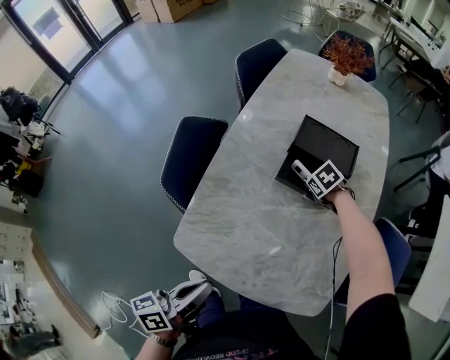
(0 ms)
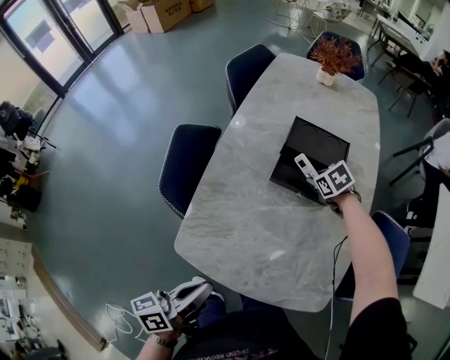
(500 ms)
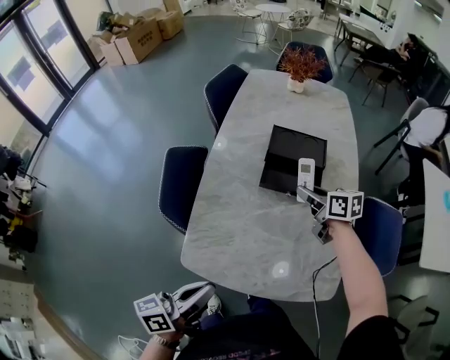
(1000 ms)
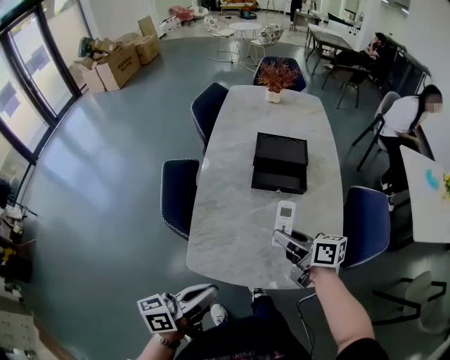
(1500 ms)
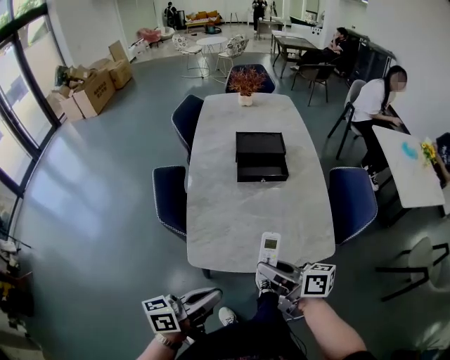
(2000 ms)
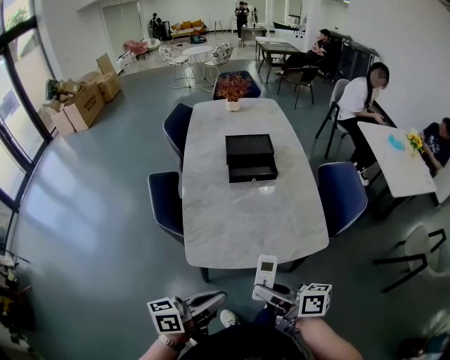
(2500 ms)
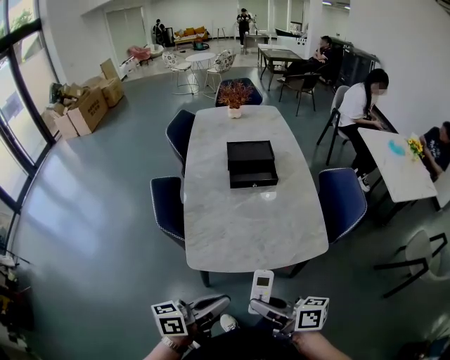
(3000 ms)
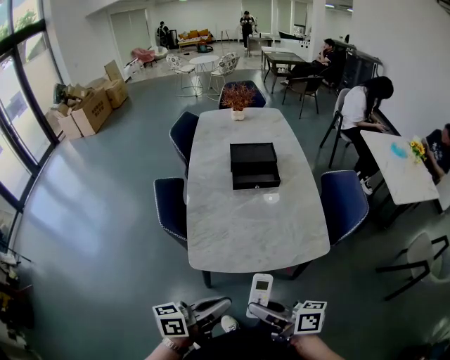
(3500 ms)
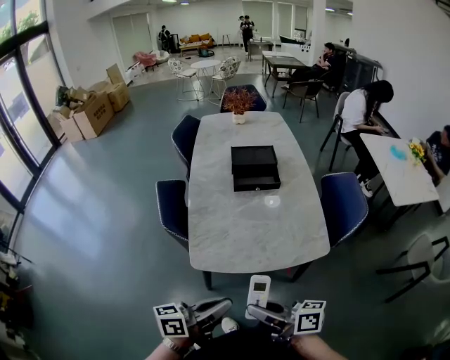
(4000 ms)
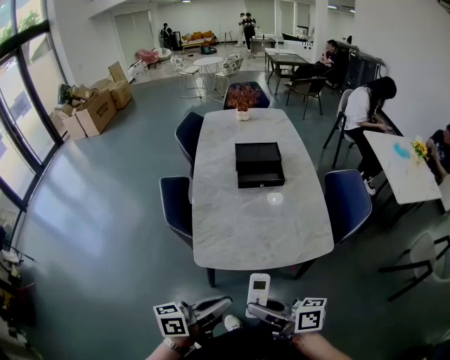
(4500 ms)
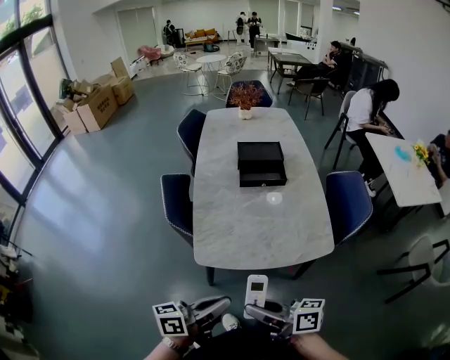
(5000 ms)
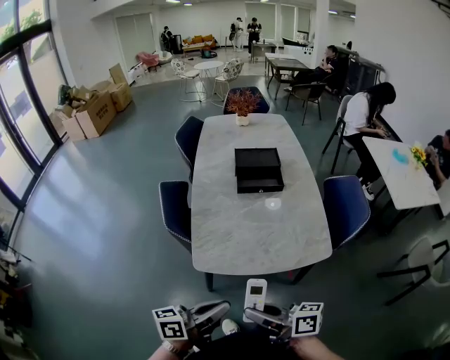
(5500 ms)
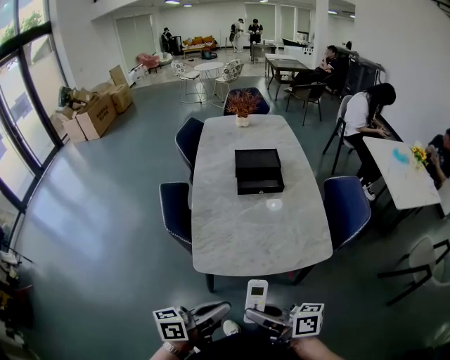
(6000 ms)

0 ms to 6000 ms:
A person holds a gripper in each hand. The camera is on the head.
0 ms to 2000 ms: The right gripper shifts by roughly 50 cm, and tips its fingers upward by approximately 70 degrees. The left gripper shifts by some 10 cm, and changes its angle by some 40 degrees.
2000 ms to 4000 ms: The right gripper travels backward by roughly 15 cm. The left gripper shifts some 5 cm backward.
4000 ms to 6000 ms: The grippers move only a little.

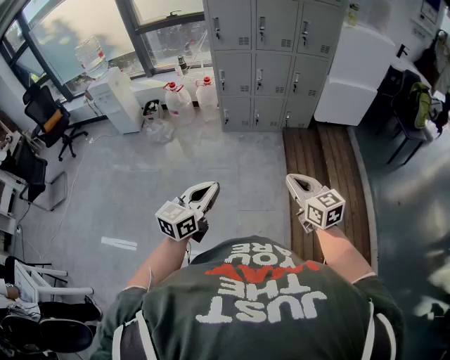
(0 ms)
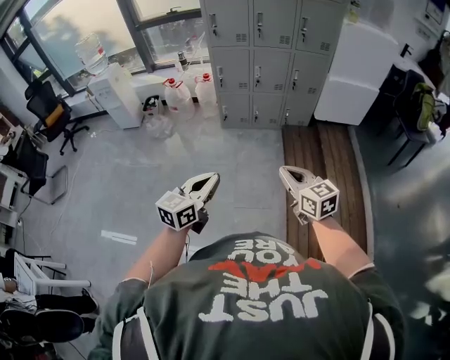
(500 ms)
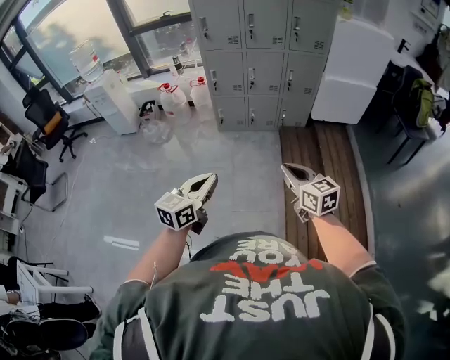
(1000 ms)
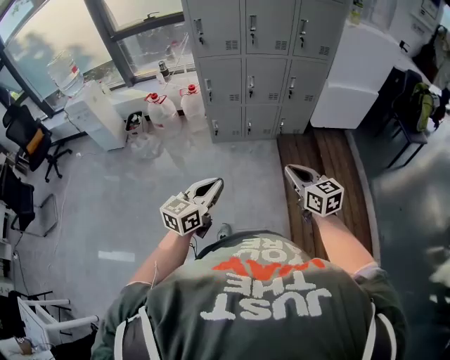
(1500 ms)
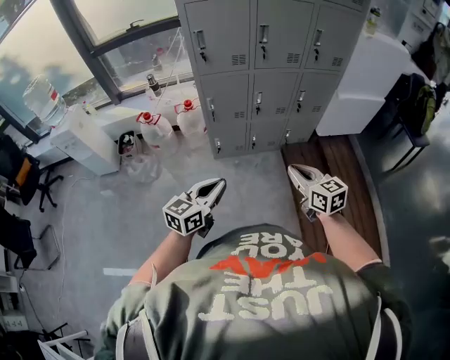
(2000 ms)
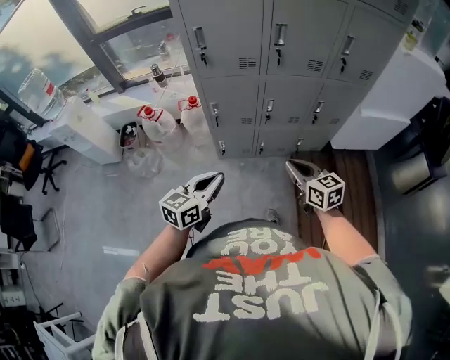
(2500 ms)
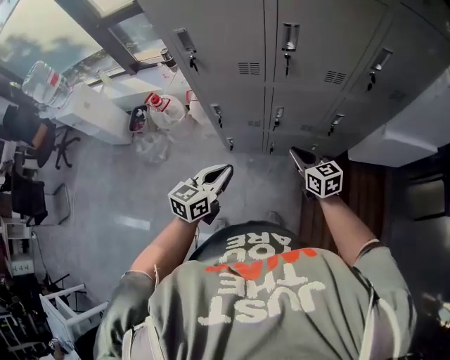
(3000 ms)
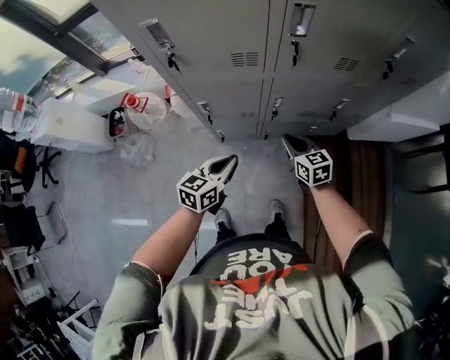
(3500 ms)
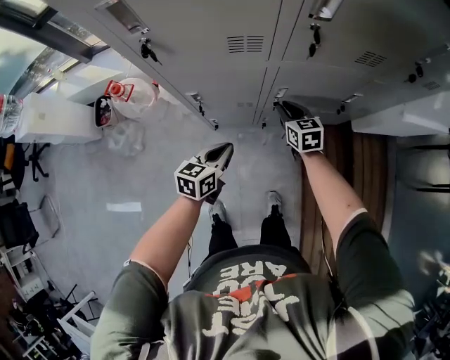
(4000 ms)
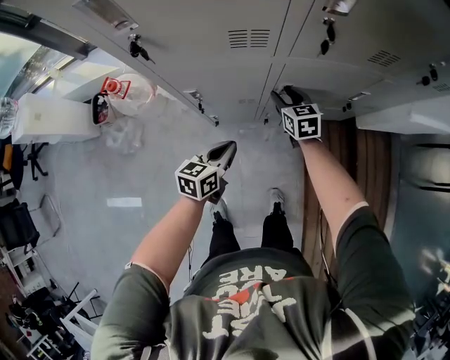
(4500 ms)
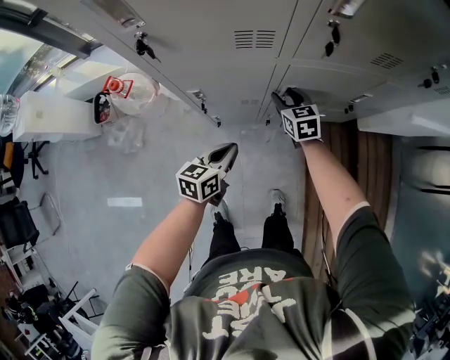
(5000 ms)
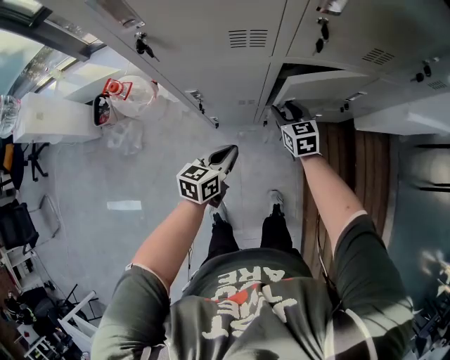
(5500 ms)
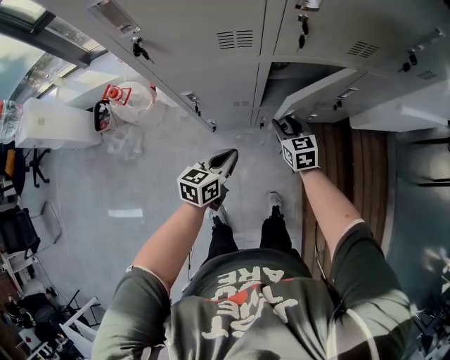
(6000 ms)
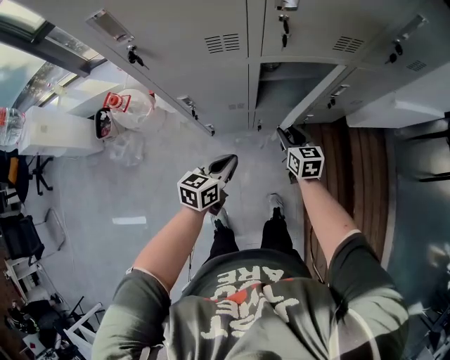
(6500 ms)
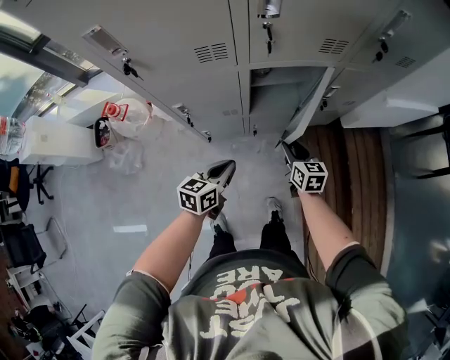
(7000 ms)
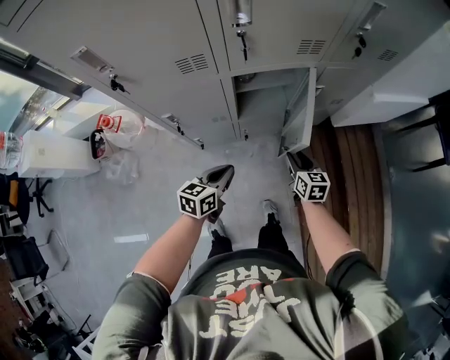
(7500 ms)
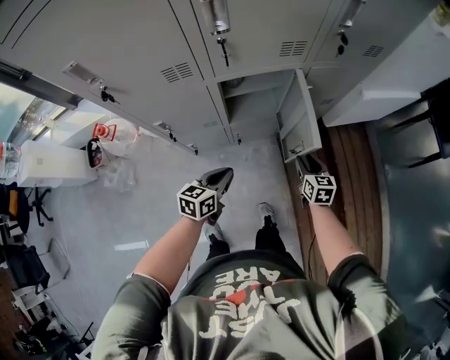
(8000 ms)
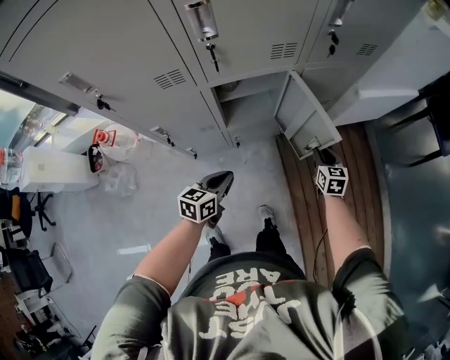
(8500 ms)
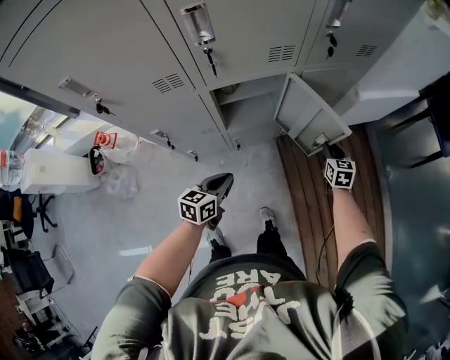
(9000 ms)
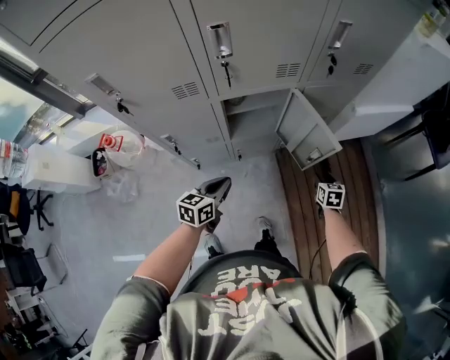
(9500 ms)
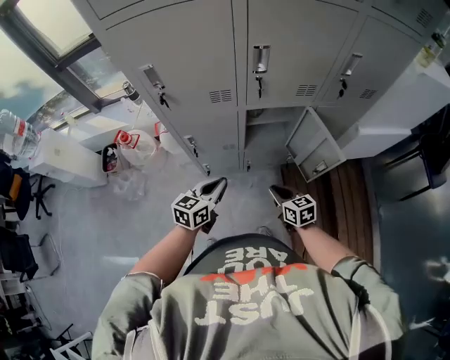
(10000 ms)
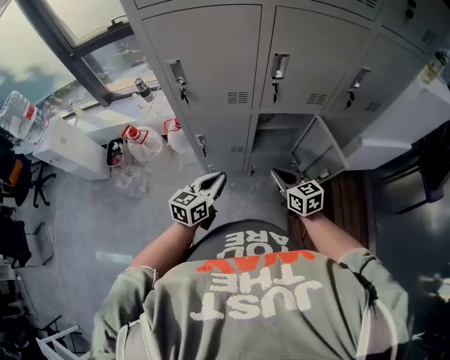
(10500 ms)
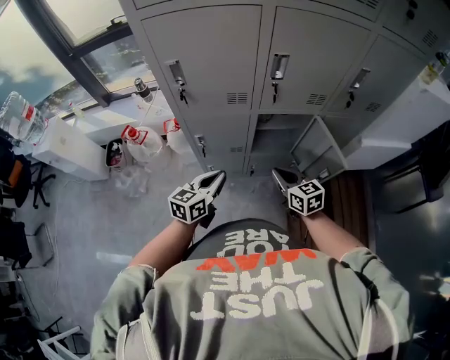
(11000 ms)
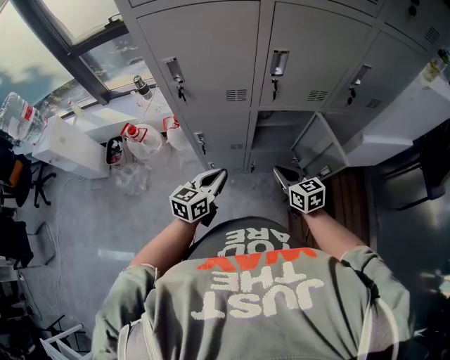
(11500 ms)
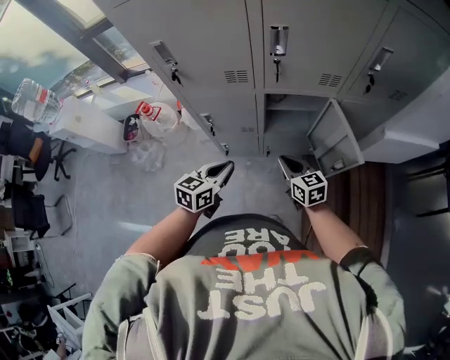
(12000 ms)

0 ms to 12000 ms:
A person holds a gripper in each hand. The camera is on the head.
0 ms to 2000 ms: The two grippers travel together, forward, approximately 40 cm.
2000 ms to 4000 ms: Both grippers are carried forward, approximately 50 cm. Both grippers move downward, approximately 25 cm. The left gripper turns by roughly 20 degrees.
4000 ms to 6000 ms: The right gripper goes roughly 5 cm backward, and opens its fingers.
6000 ms to 8000 ms: The left gripper shifts some 10 cm to the right, while the right gripper heads to the right, covering approximately 25 cm, and swivels approximately 30 degrees.
8000 ms to 10000 ms: The left gripper heads upward, covering about 10 cm; the right gripper changes place by some 20 cm, swivels roughly 30 degrees, and closes.
10000 ms to 12000 ms: The right gripper moves forward, roughly 5 cm, and reaches roughly 10 cm upward, then returns.

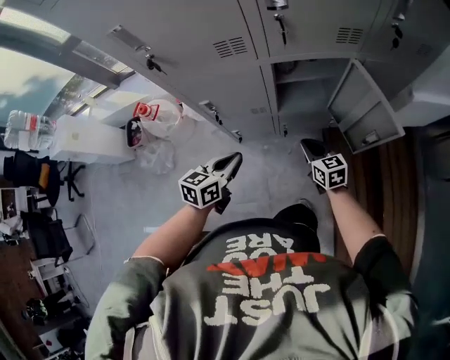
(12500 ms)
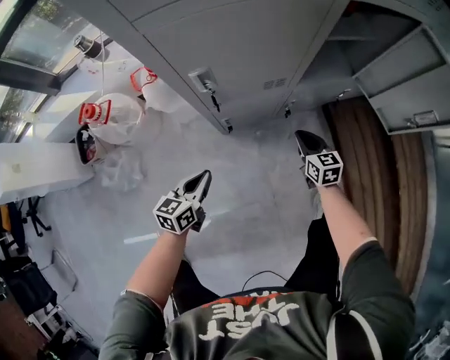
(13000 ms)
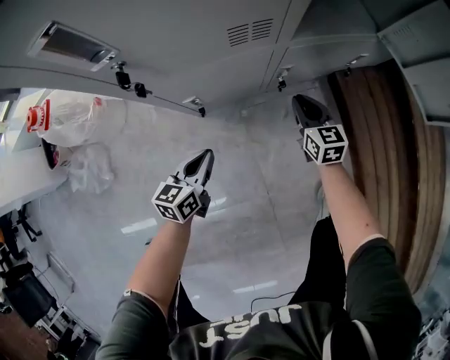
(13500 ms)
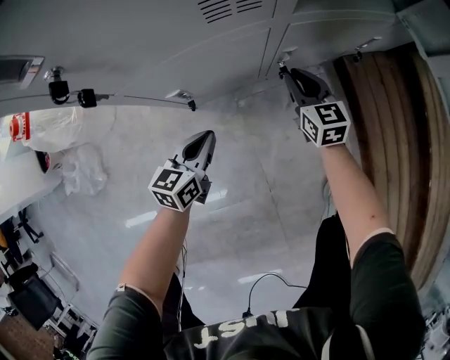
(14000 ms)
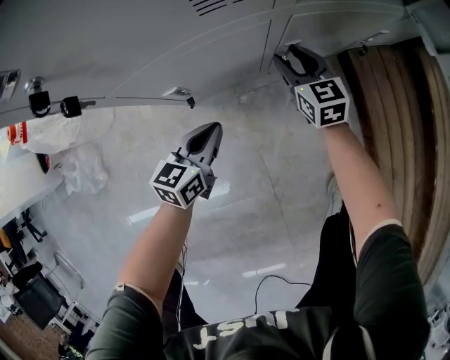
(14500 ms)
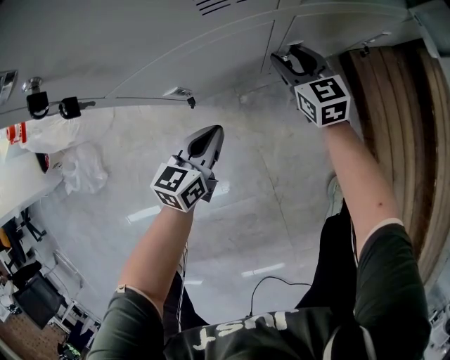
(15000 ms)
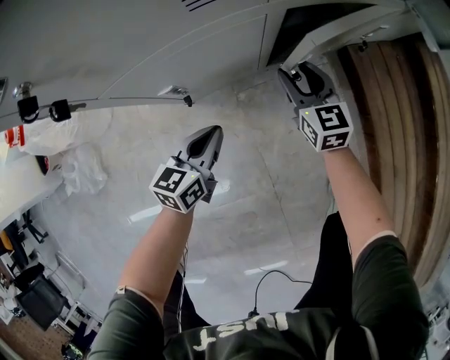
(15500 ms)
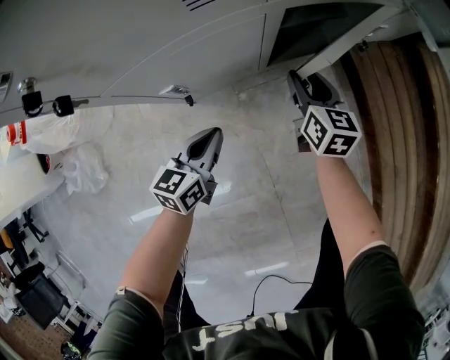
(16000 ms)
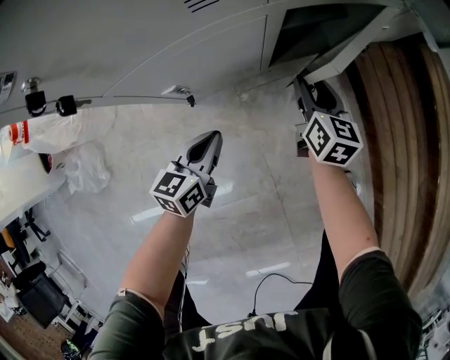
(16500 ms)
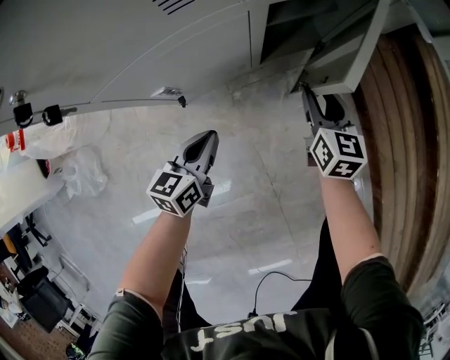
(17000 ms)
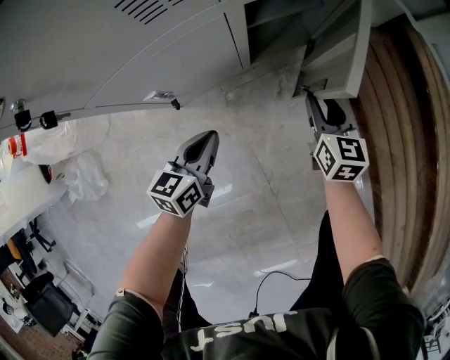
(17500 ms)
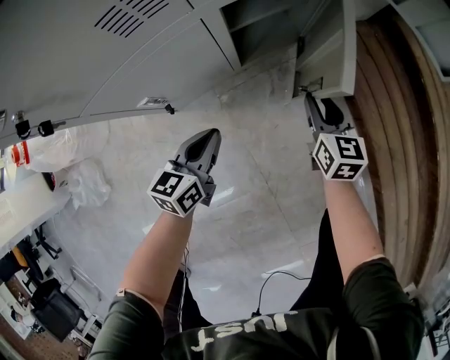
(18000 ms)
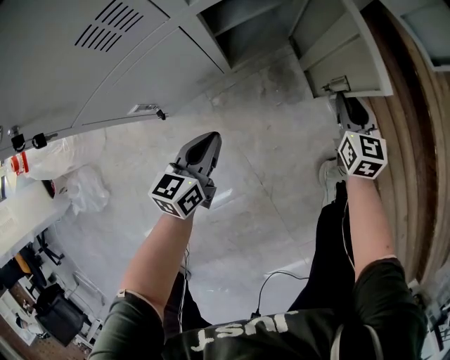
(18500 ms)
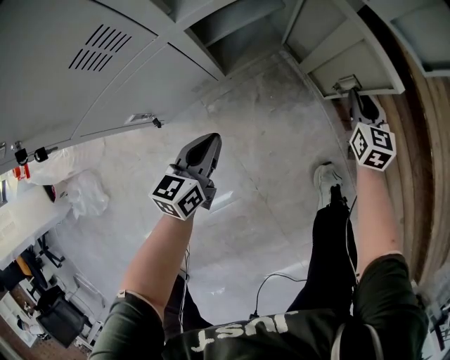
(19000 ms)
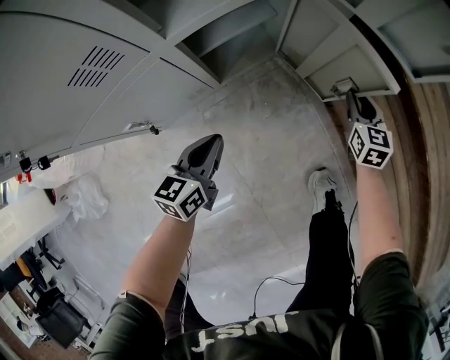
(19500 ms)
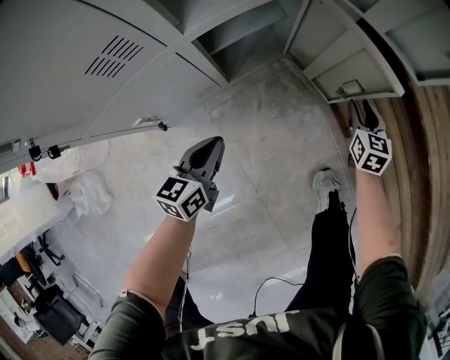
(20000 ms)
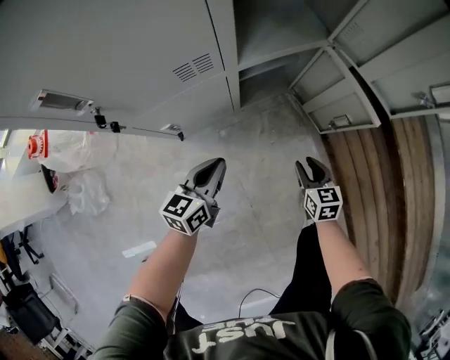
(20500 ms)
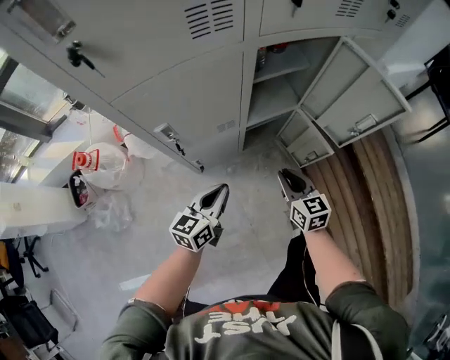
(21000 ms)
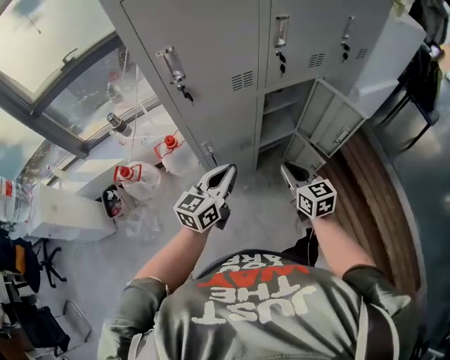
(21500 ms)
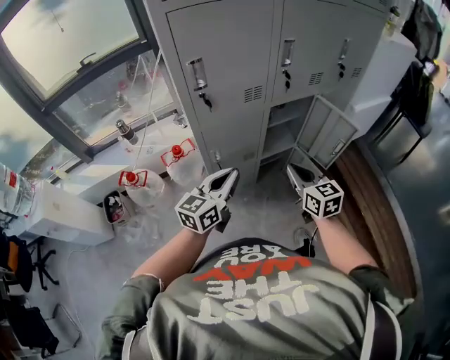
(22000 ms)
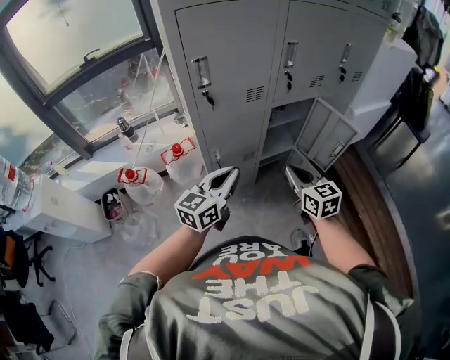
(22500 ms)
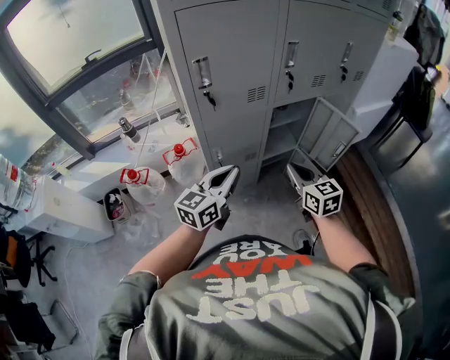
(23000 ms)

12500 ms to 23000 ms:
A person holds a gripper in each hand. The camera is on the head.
12500 ms to 14500 ms: The grippers both shift downward by some 50 cm. The right gripper opens up.
14500 ms to 16500 ms: The right gripper is displaced to the right and backward by approximately 10 cm, and turns by approximately 30 degrees.
16500 ms to 19000 ms: The left gripper heads to the right, covering roughly 10 cm. Meanwhile the right gripper shifts roughly 30 cm to the right, swivels some 20 degrees, and closes up.
19000 ms to 21000 ms: The left gripper heads upward, covering approximately 35 cm, while the right gripper travels upward, to the left and backward by some 50 cm, and turns by some 30 degrees.
21000 ms to 23000 ms: Both grippers travel together upward, about 35 cm.
